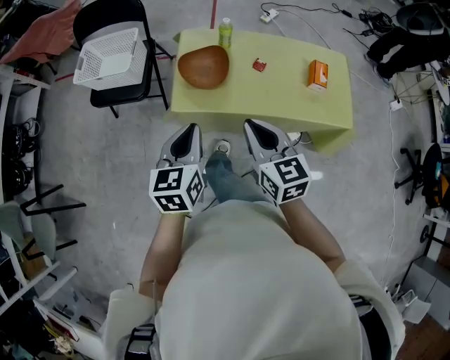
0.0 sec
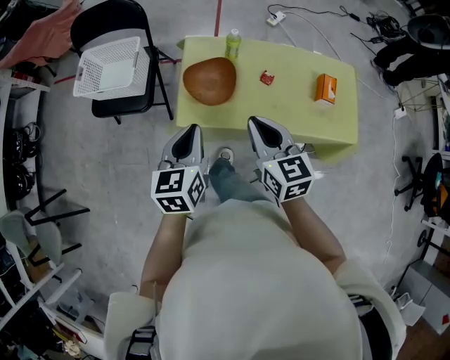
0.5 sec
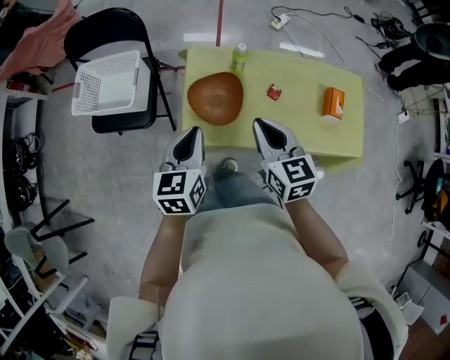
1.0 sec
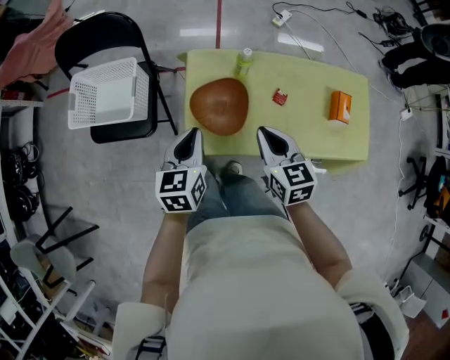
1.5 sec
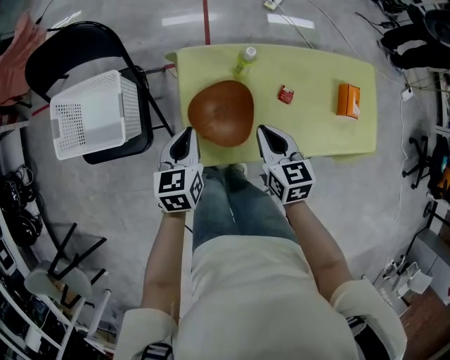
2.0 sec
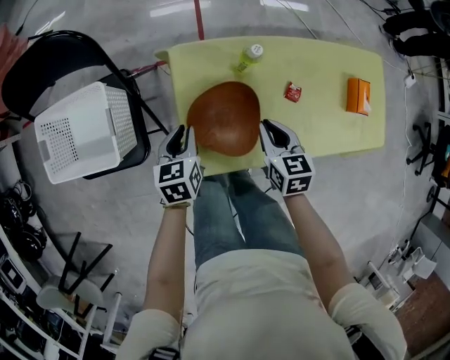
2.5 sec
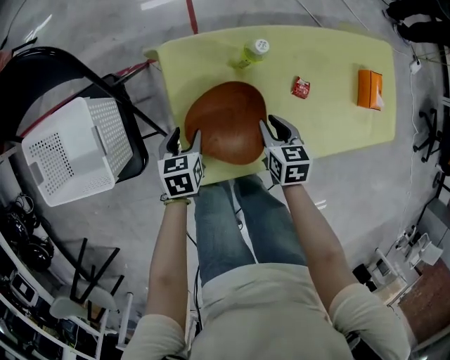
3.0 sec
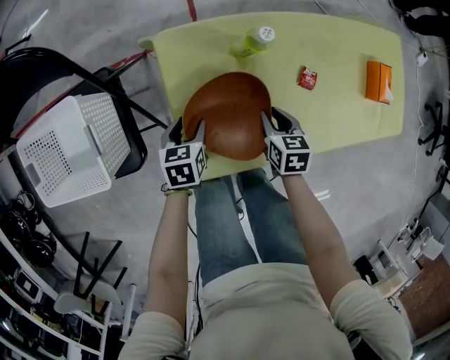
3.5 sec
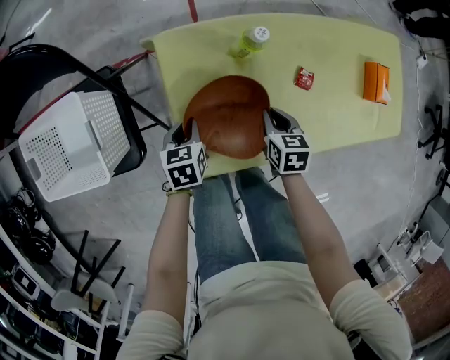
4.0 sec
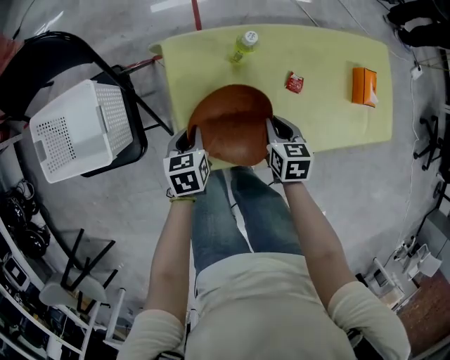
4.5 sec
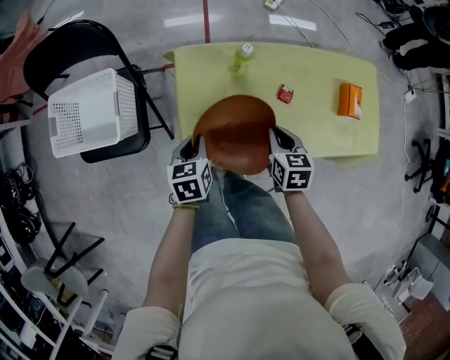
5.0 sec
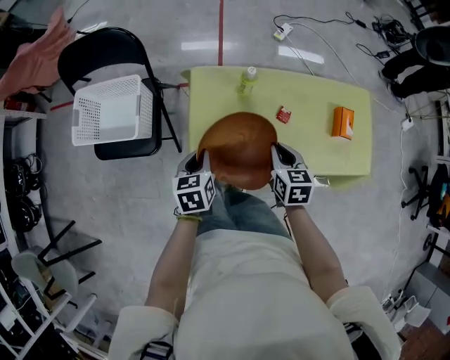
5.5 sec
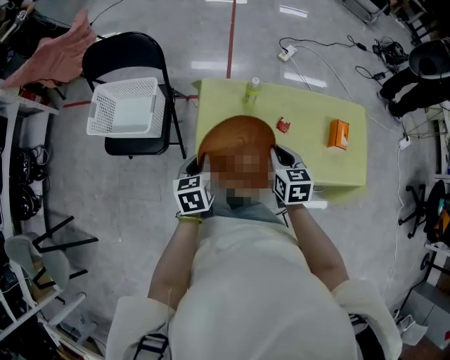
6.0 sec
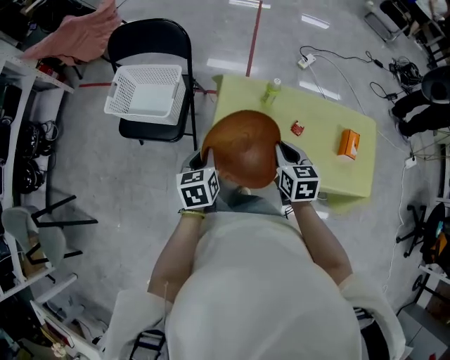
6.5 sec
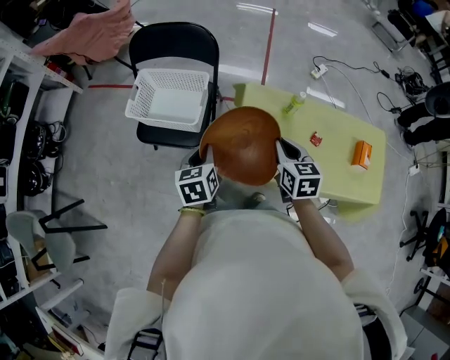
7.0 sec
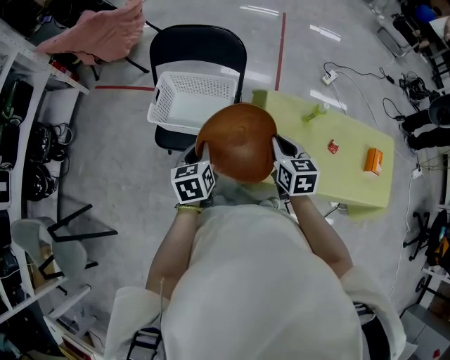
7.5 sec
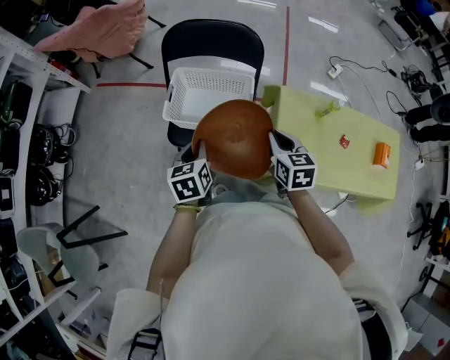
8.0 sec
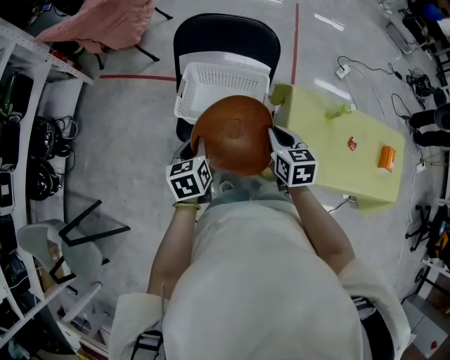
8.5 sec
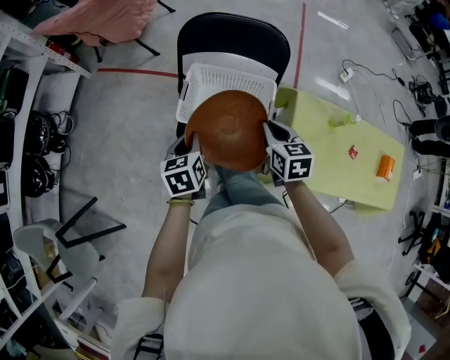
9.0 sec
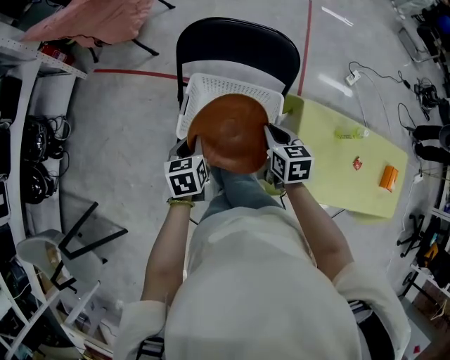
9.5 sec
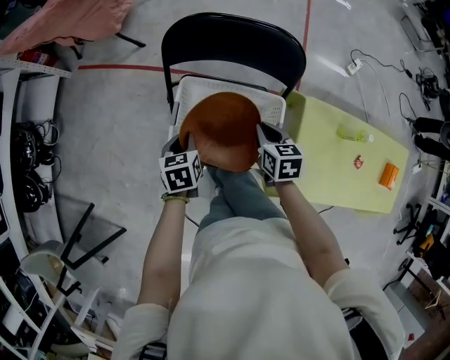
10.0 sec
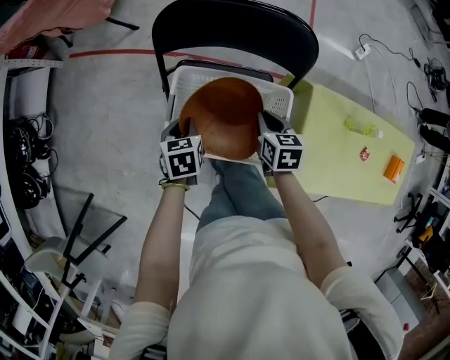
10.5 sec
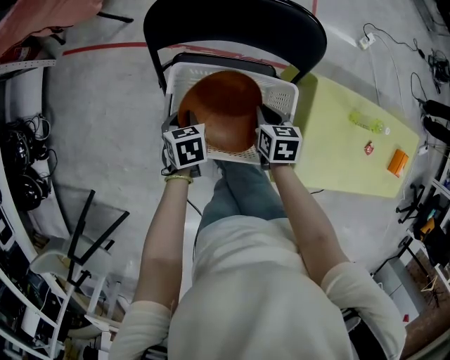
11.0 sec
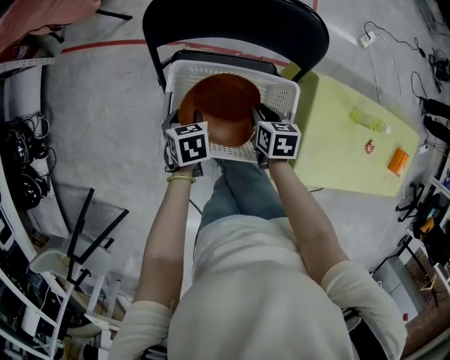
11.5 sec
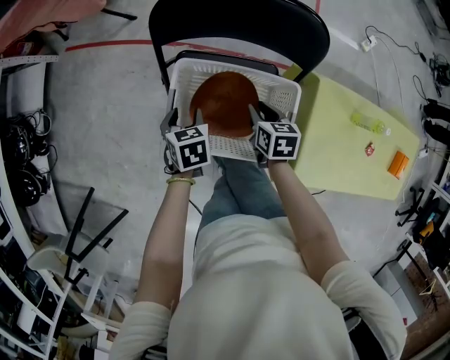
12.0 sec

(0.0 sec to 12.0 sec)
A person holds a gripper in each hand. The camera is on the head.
0.0 sec - 2.0 sec: The grippers both shift forward and downward by approximately 35 cm.
2.0 sec - 4.0 sec: Both grippers move downward, about 20 cm. The left gripper swivels roughly 20 degrees, and opens, then closes once more. Meanwhile the right gripper changes its angle by about 20 degrees.
4.0 sec - 6.0 sec: The left gripper shifts some 30 cm upward and backward, and changes its angle by some 20 degrees, while the right gripper moves upward, approximately 30 cm, and rotates about 20 degrees.
6.0 sec - 8.0 sec: Both grippers travel together to the left, roughly 40 cm.
8.0 sec - 10.0 sec: The two grippers go roughly 25 cm forward and downward.
10.0 sec - 12.0 sec: The right gripper shifts approximately 10 cm downward, while the left gripper goes roughly 5 cm downward, and opens up.

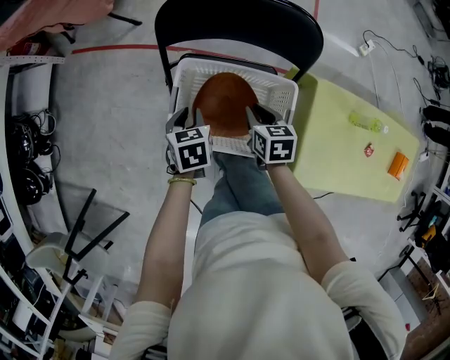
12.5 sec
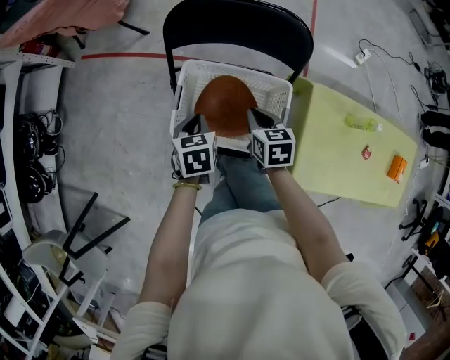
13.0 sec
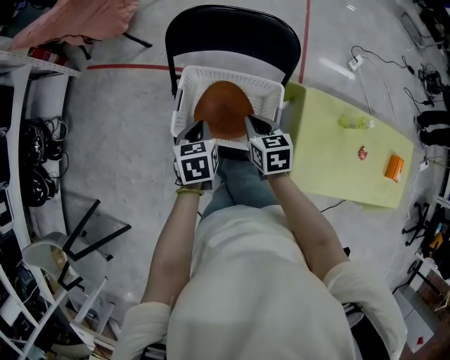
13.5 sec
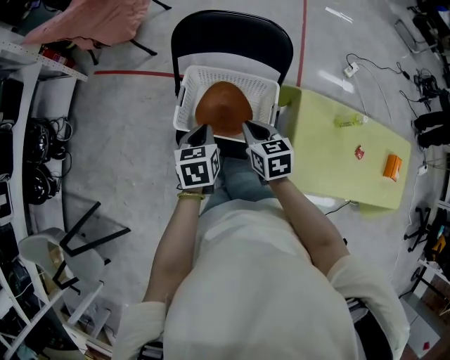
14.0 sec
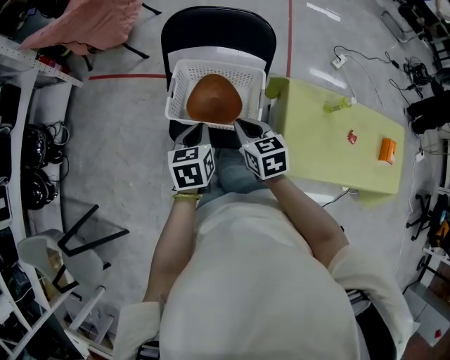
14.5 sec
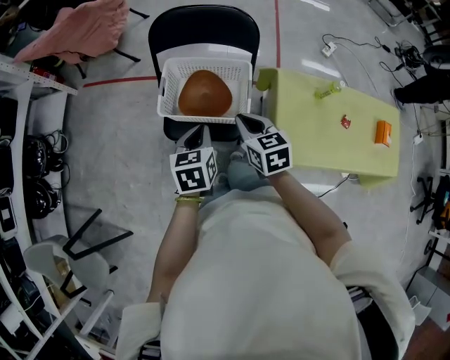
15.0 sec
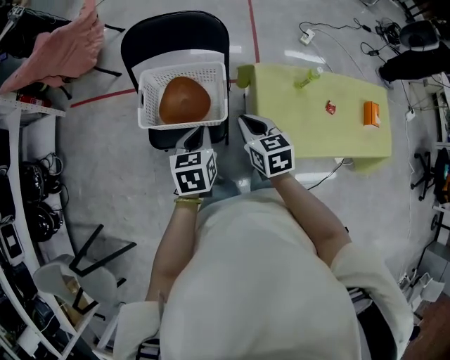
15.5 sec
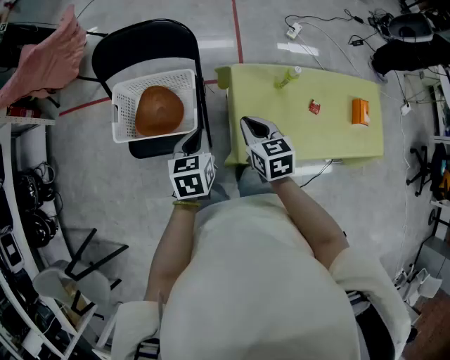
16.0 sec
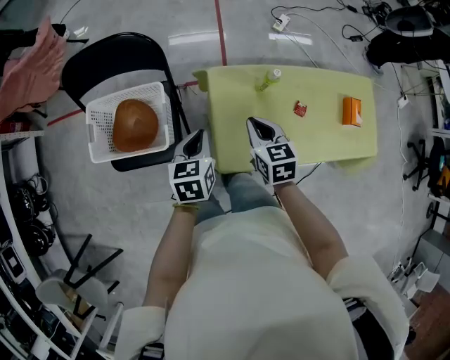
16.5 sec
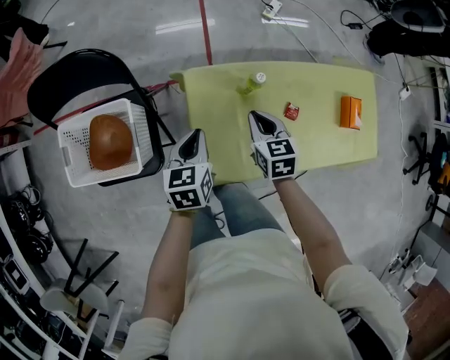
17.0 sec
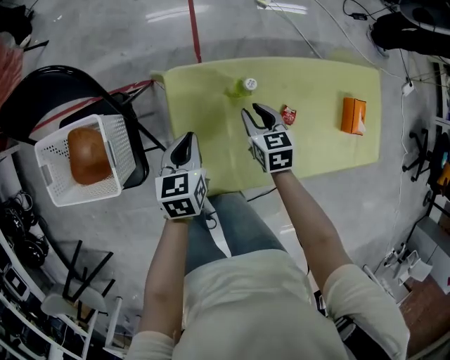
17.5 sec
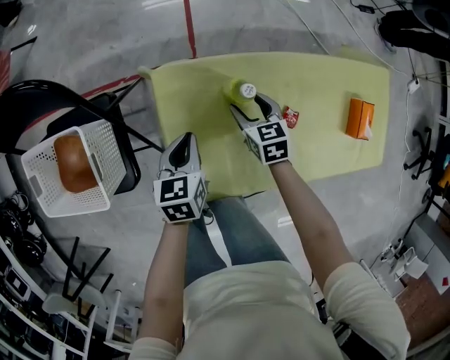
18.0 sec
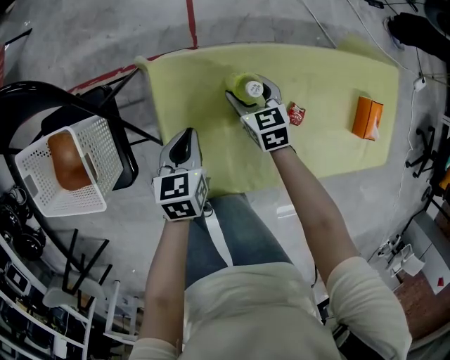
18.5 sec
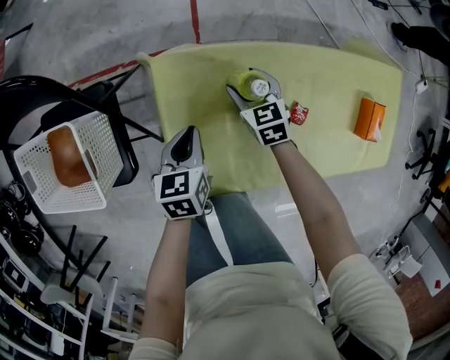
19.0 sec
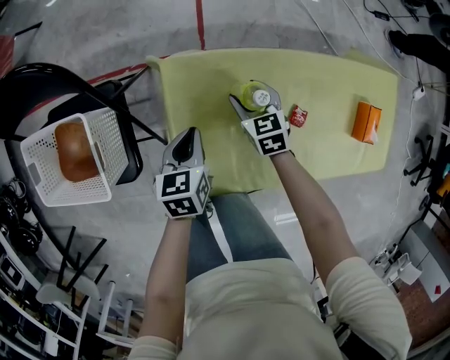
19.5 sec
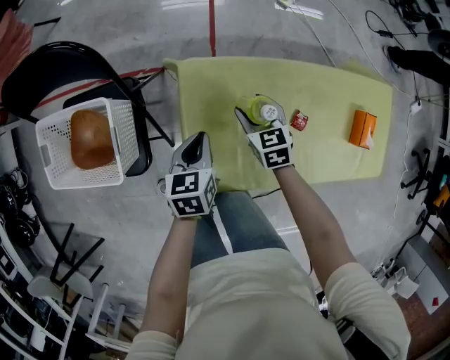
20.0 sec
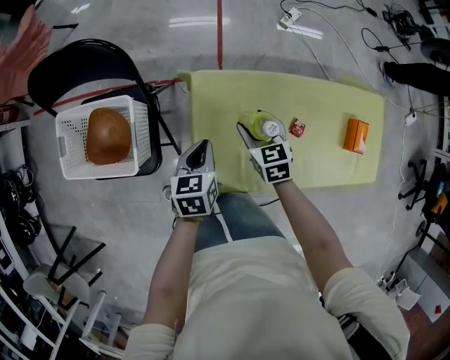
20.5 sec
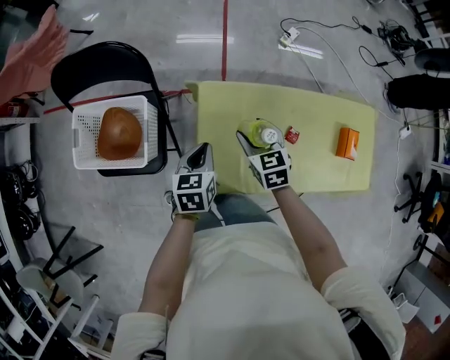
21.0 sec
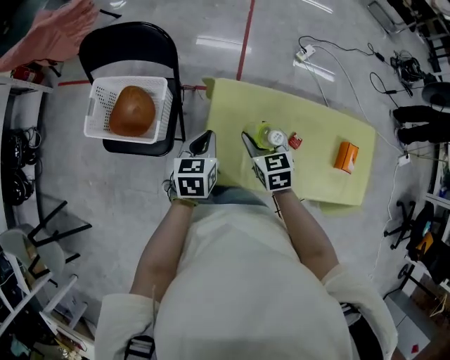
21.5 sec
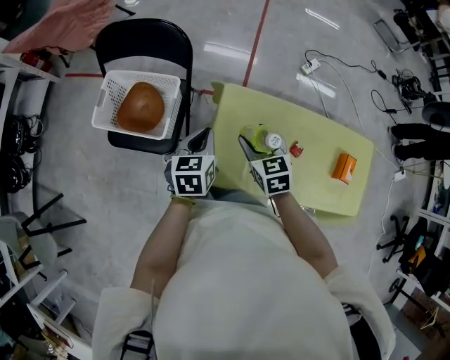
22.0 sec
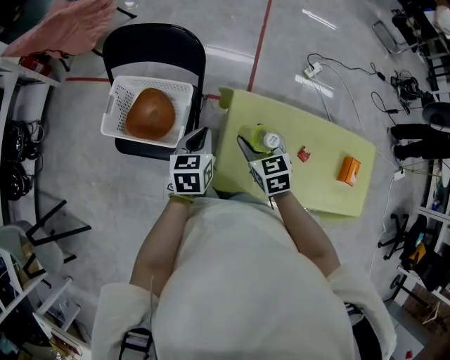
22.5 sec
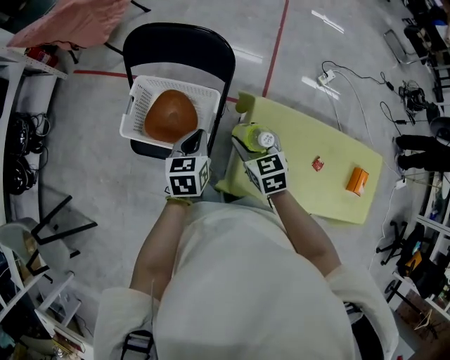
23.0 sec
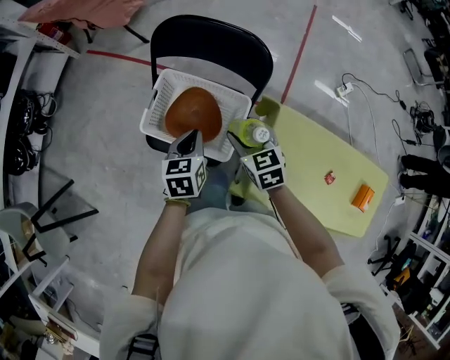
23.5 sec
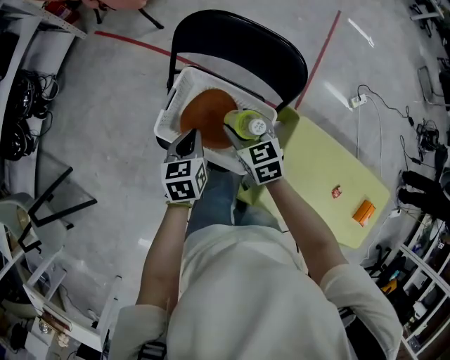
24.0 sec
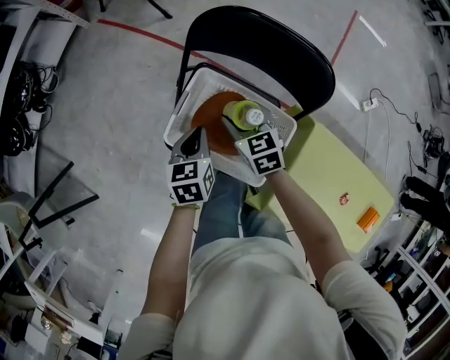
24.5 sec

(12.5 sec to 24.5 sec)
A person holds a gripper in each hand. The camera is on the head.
12.5 sec - 14.5 sec: The left gripper travels backward and upward by roughly 25 cm, and rotates some 20 degrees, while the right gripper goes some 25 cm upward and backward.
14.5 sec - 16.5 sec: Both grippers travel together to the right, about 35 cm.
16.5 sec - 18.5 sec: The right gripper goes roughly 35 cm downward, forward and to the right, and opens its fingers; the left gripper is displaced downward, to the right and forward by about 30 cm.
18.5 sec - 20.5 sec: Both grippers move upward, backward and to the left, some 15 cm.
20.5 sec - 22.5 sec: The right gripper goes approximately 20 cm upward and to the left. Meanwhile the left gripper travels to the left and upward by approximately 20 cm.
22.5 sec - 24.5 sec: Both grippers move to the left and forward, some 40 cm. The right gripper swivels approximately 20 degrees, while the left gripper swivels some 30 degrees.

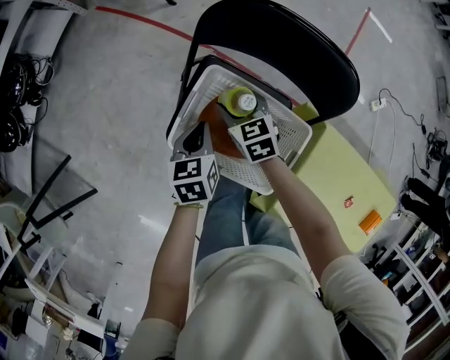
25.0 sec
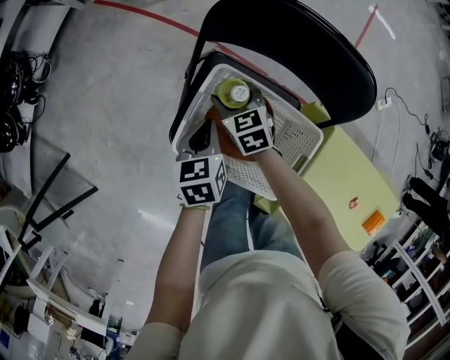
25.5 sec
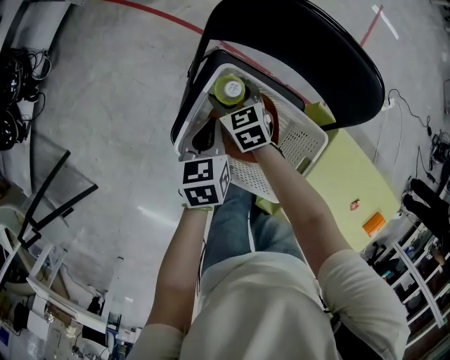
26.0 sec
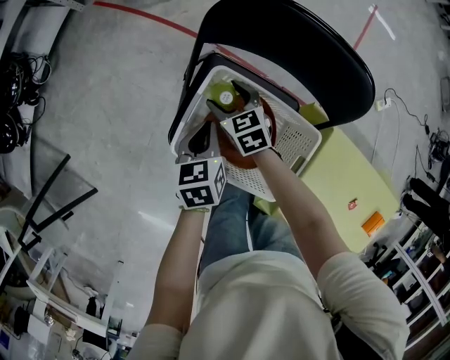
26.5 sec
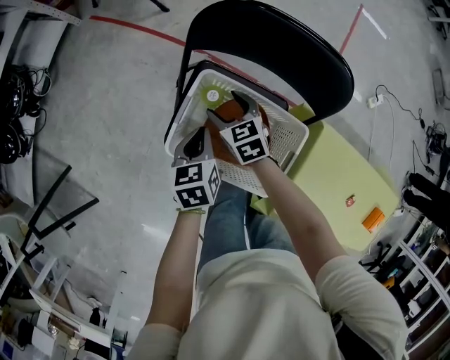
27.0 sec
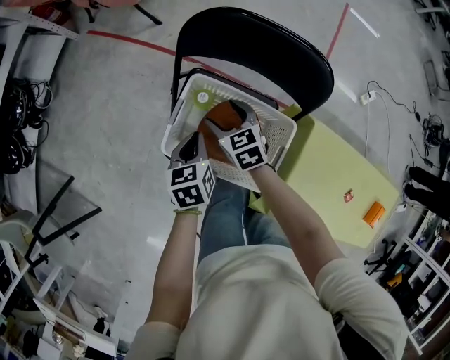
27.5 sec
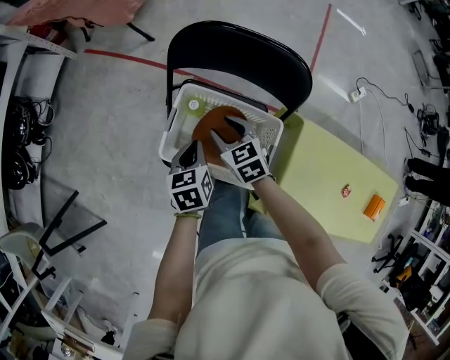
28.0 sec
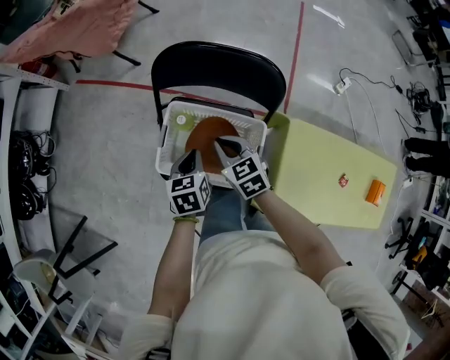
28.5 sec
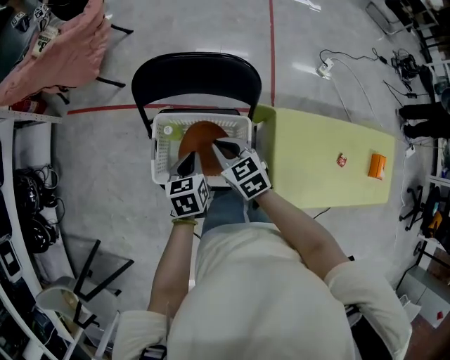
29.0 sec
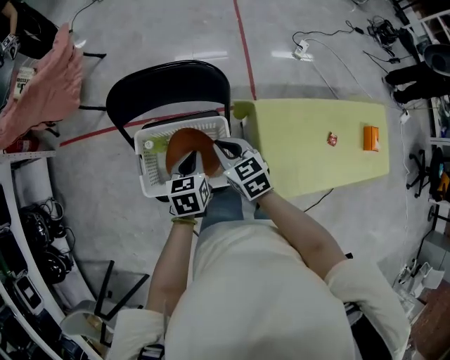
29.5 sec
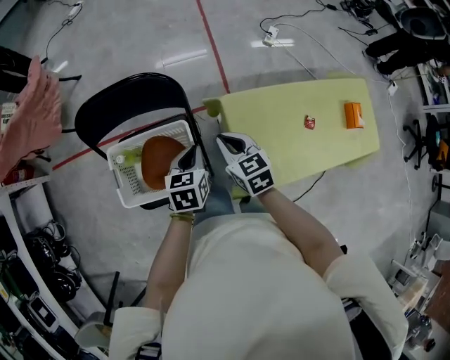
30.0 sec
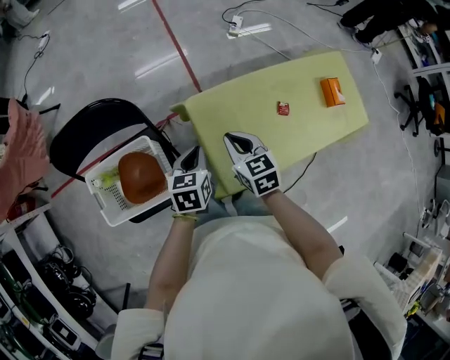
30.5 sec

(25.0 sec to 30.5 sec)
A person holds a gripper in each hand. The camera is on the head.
27.0 sec - 28.5 sec: The right gripper shifts roughly 15 cm upward, backward and to the right, and closes up. Meanwhile the left gripper goes roughly 5 cm upward.
28.5 sec - 30.5 sec: The left gripper shifts by roughly 40 cm, and swivels approximately 40 degrees; the right gripper ends up roughly 40 cm from where it was, and changes its angle by roughly 40 degrees.
